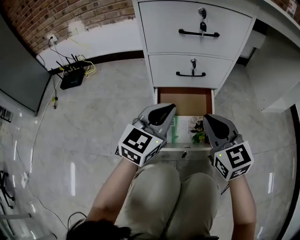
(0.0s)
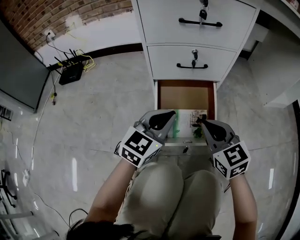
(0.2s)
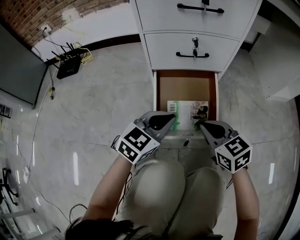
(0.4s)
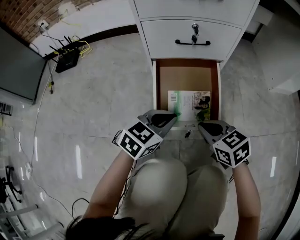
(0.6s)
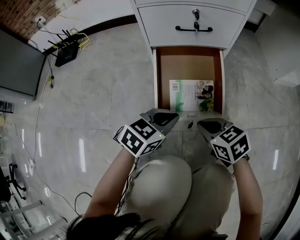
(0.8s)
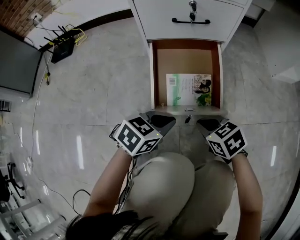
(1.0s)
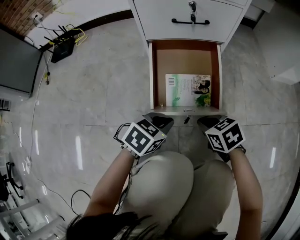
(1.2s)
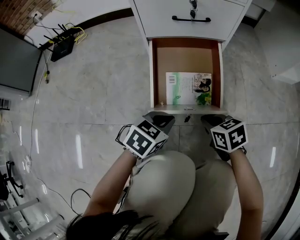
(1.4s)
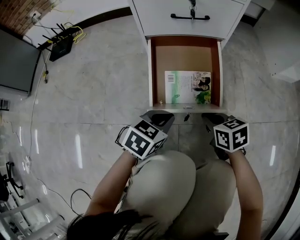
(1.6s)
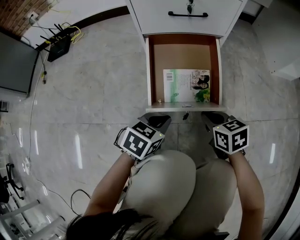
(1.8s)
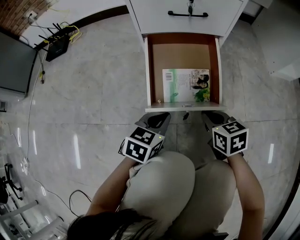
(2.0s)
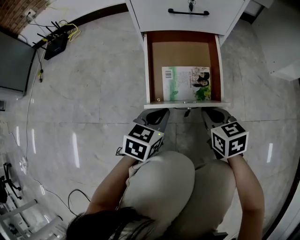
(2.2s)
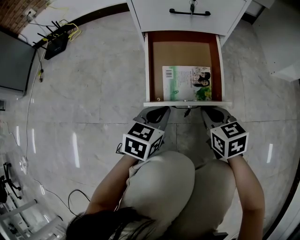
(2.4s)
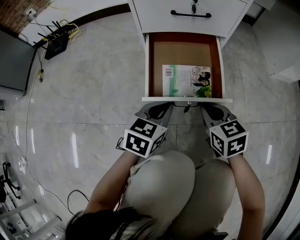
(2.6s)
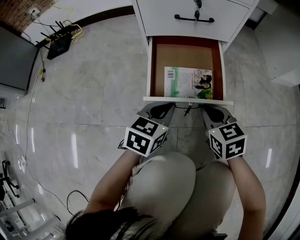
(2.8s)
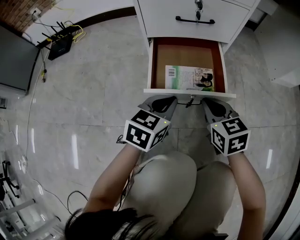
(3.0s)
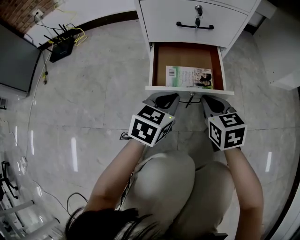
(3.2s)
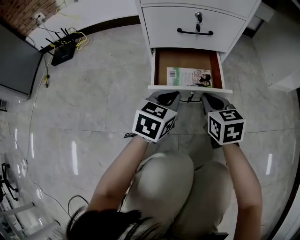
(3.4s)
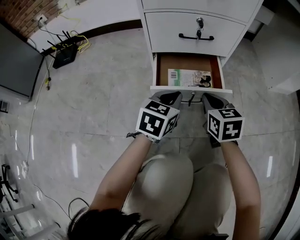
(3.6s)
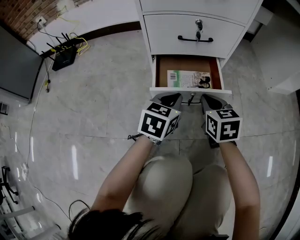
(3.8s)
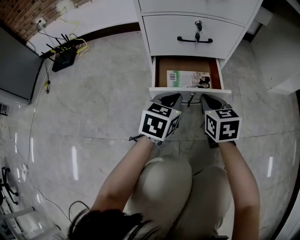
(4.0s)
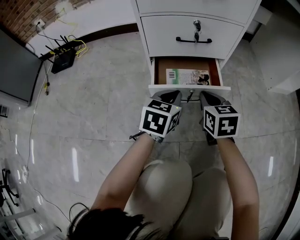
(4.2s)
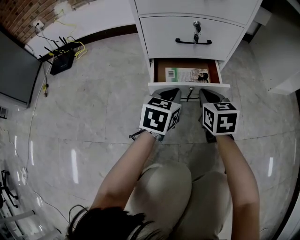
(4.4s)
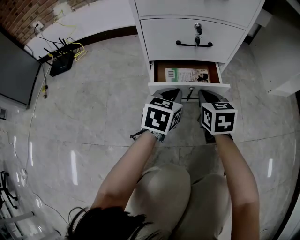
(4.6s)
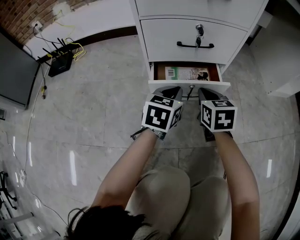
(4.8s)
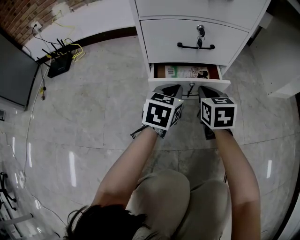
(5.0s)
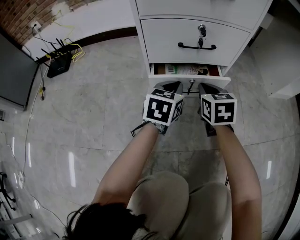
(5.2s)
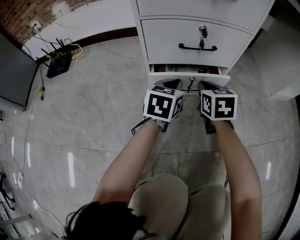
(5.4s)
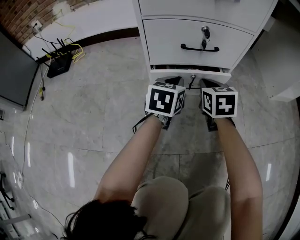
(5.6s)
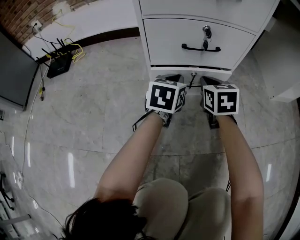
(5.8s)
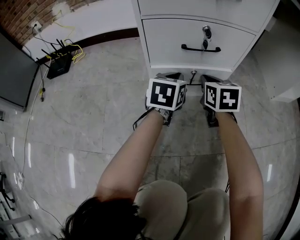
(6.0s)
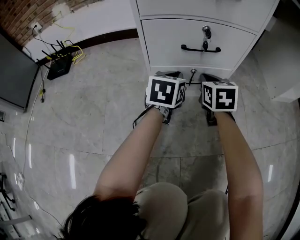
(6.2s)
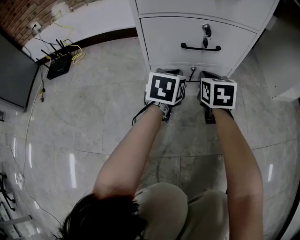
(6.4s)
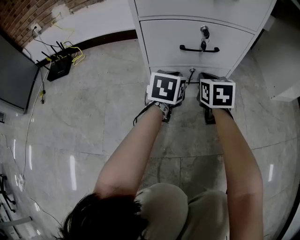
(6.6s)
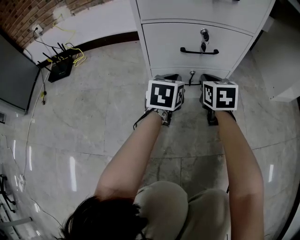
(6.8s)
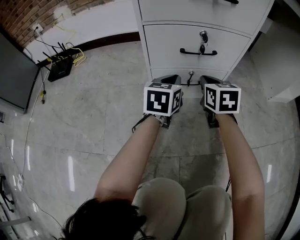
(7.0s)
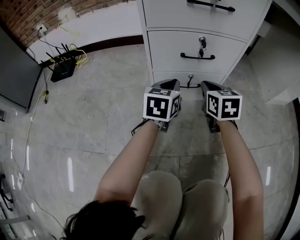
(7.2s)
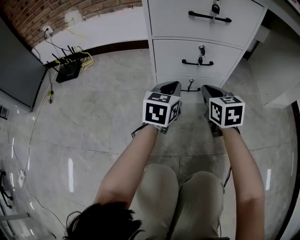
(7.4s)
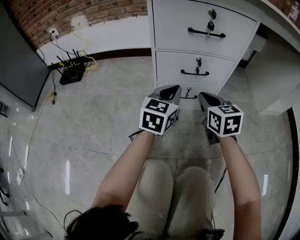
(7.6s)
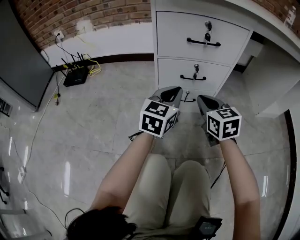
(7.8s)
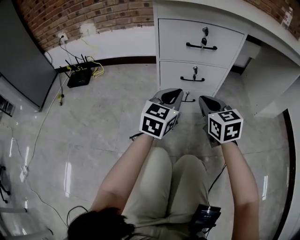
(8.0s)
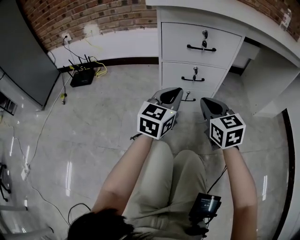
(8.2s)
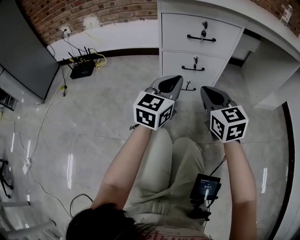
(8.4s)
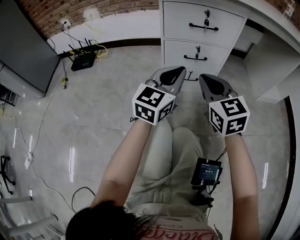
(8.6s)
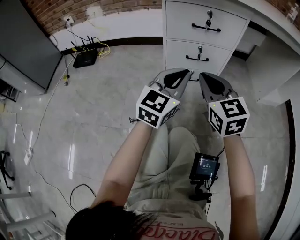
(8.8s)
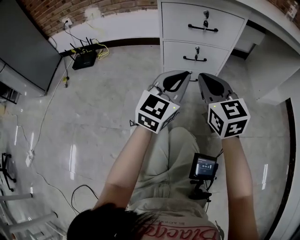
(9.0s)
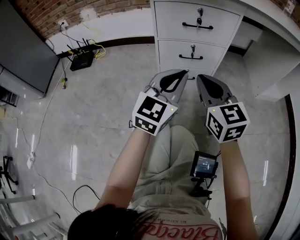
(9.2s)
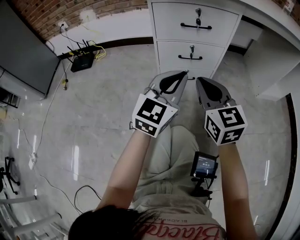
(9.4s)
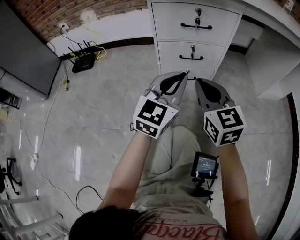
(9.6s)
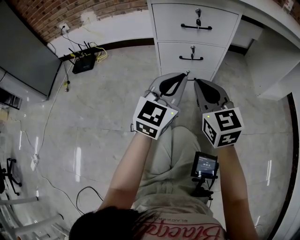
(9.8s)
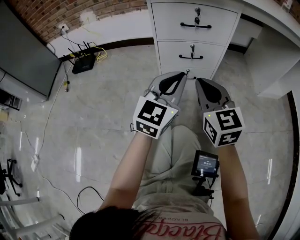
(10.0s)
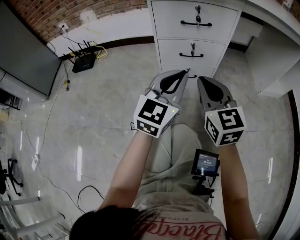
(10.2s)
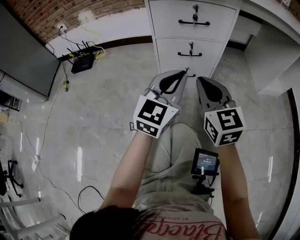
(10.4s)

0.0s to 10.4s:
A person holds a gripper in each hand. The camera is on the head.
0.0s to 1.4s: The left gripper is displaced downward and backward by about 25 cm, and tips its fingers downward by some 40 degrees. Meanwhile the right gripper travels downward by some 25 cm, and tips its fingers downward by about 40 degrees.
1.4s to 3.0s: The right gripper shifts some 10 cm upward and forward, and turns by about 20 degrees. The left gripper heads forward, covering roughly 5 cm.
3.0s to 4.4s: The two grippers go some 10 cm forward.
4.4s to 6.0s: The grippers both shift forward by about 10 cm.
6.0s to 7.4s: The left gripper moves upward, some 5 cm; the right gripper travels upward and backward by approximately 10 cm.
7.4s to 9.0s: The two grippers go roughly 25 cm upward and backward. The right gripper rotates some 20 degrees. The left gripper changes its angle by approximately 30 degrees.
9.0s to 10.4s: The grippers move only a little.

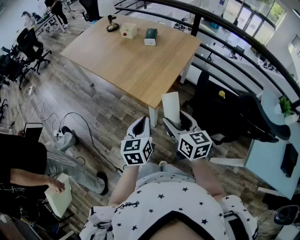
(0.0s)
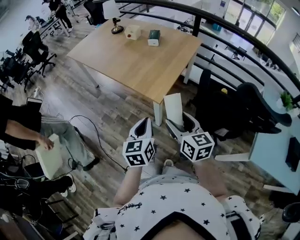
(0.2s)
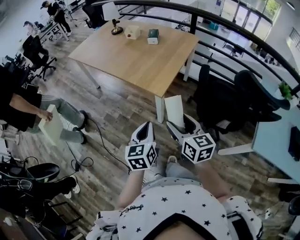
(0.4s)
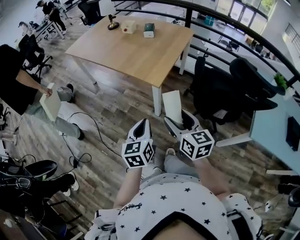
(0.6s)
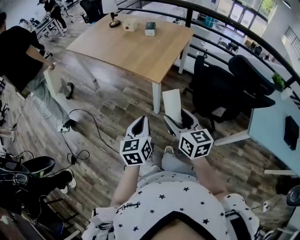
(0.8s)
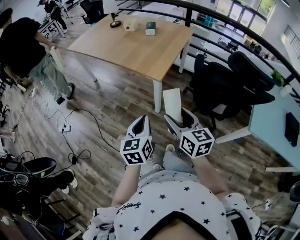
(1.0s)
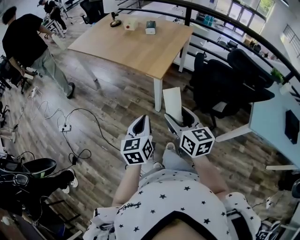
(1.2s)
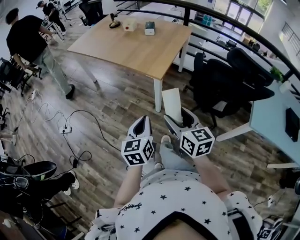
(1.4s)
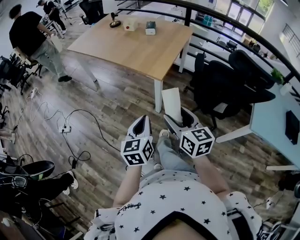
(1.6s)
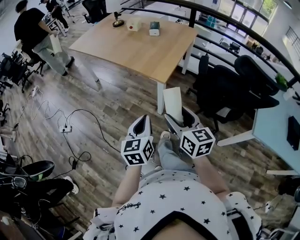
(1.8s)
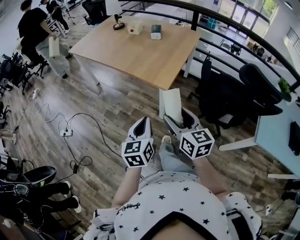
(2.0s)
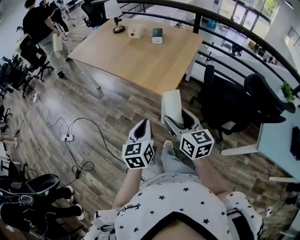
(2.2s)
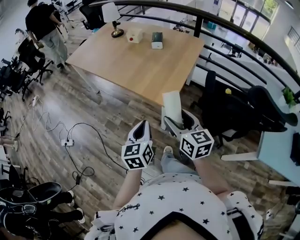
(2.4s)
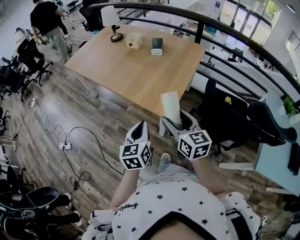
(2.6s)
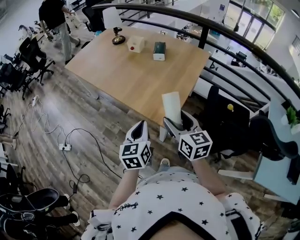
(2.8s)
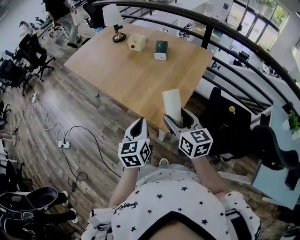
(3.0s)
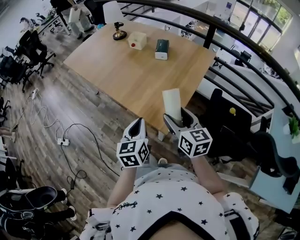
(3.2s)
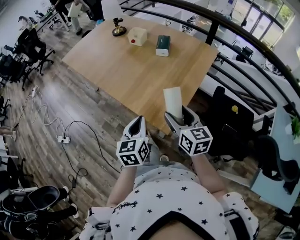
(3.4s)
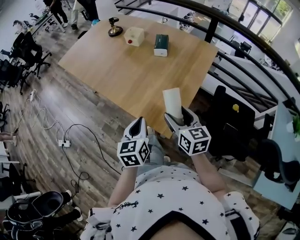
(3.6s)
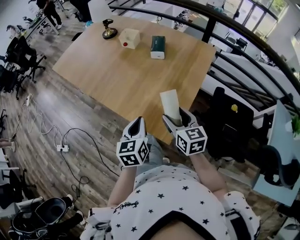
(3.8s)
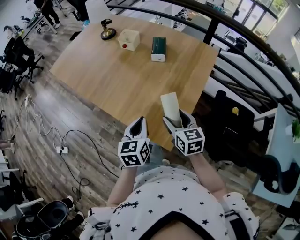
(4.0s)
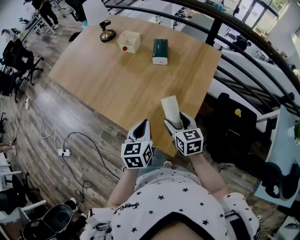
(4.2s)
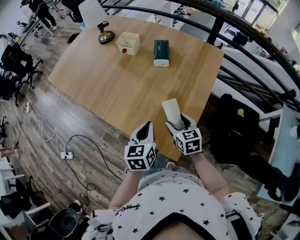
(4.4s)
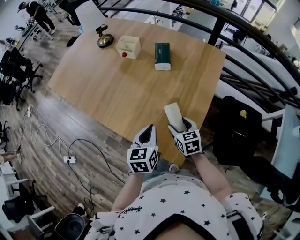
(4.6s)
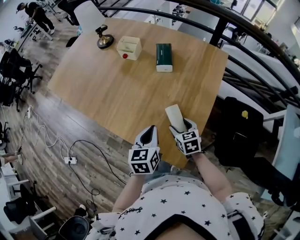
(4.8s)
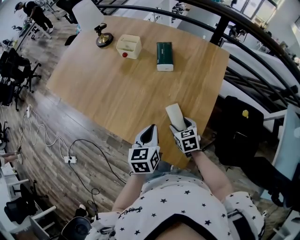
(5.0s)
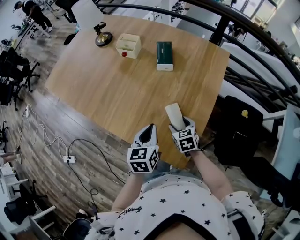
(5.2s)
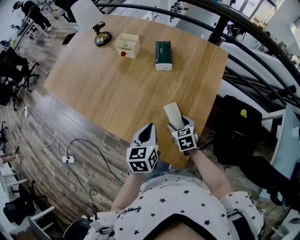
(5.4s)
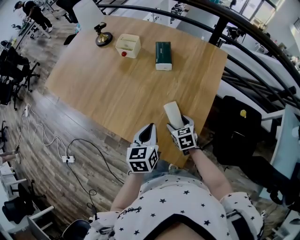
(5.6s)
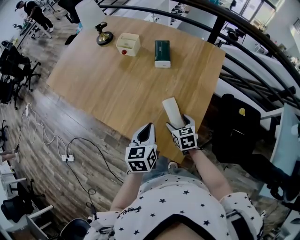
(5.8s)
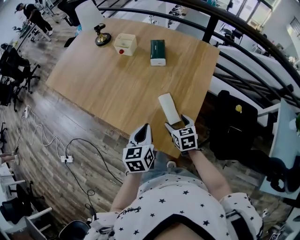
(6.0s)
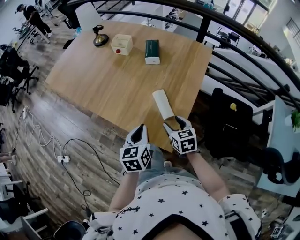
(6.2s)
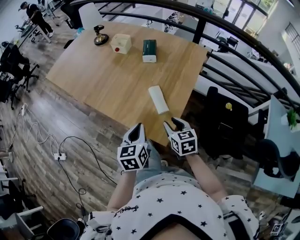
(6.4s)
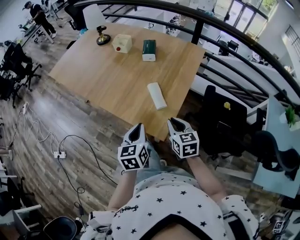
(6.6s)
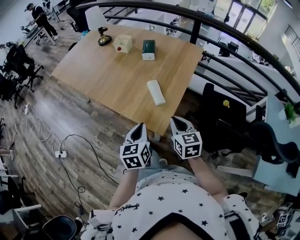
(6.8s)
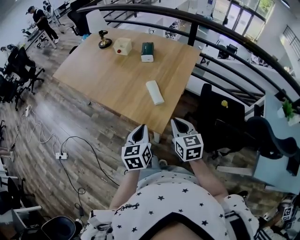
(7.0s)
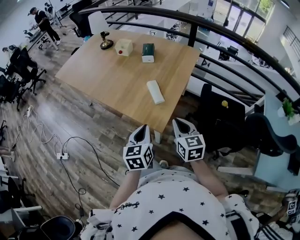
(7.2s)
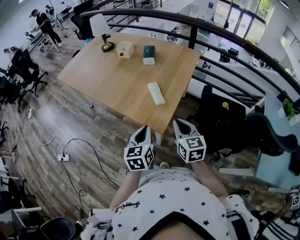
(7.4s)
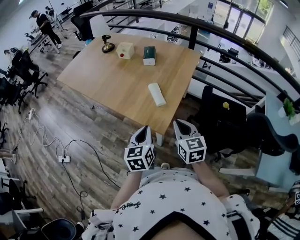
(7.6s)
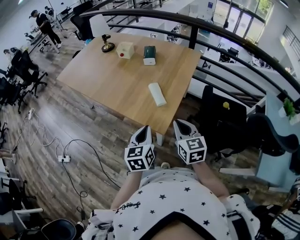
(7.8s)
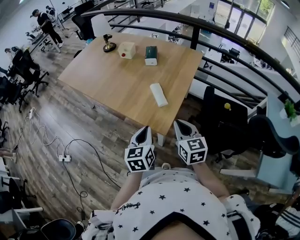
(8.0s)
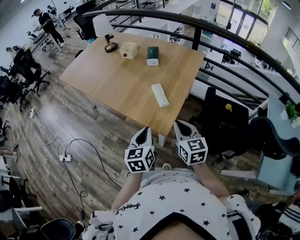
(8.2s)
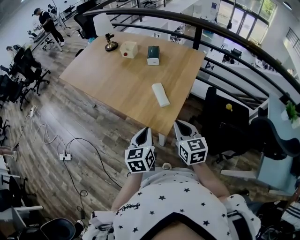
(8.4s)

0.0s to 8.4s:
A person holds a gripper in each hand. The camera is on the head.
0.0s to 1.4s: The grippers both shift backward by approximately 20 cm.
1.4s to 2.8s: Both grippers travel together forward, roughly 30 cm.
2.8s to 4.2s: The right gripper moves forward and downward, some 25 cm, while the left gripper travels forward by approximately 20 cm.
4.2s to 5.6s: The left gripper moves forward, some 5 cm; the right gripper shifts roughly 15 cm downward and forward.
5.6s to 7.0s: The left gripper goes some 25 cm backward, while the right gripper is displaced backward and upward by about 30 cm, turns by about 30 degrees, and closes up.
7.0s to 8.4s: The grippers make only small movements.

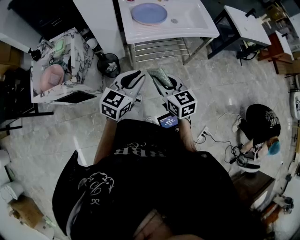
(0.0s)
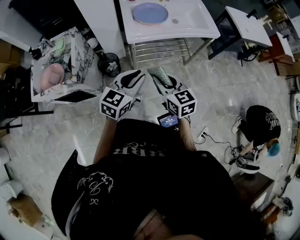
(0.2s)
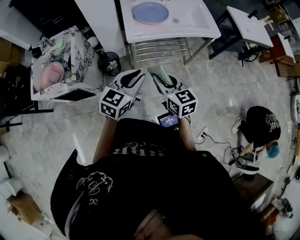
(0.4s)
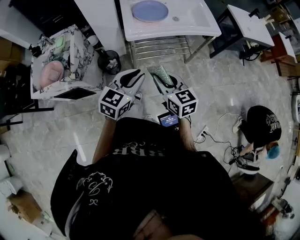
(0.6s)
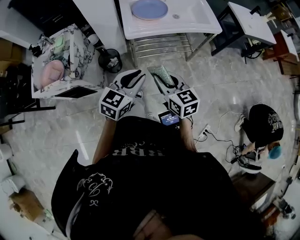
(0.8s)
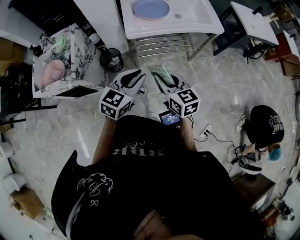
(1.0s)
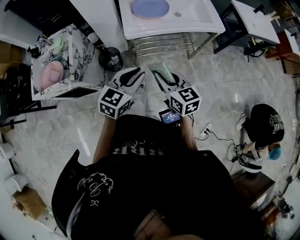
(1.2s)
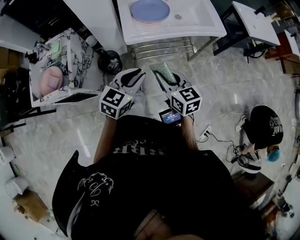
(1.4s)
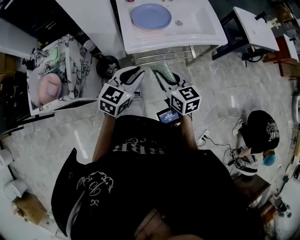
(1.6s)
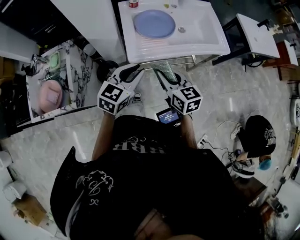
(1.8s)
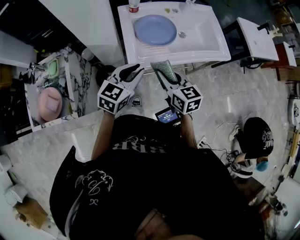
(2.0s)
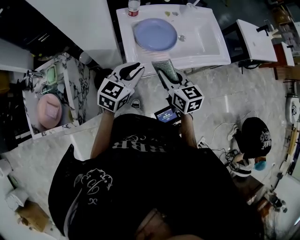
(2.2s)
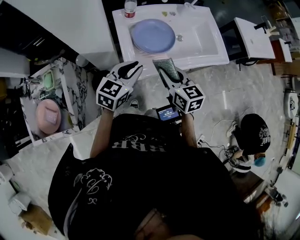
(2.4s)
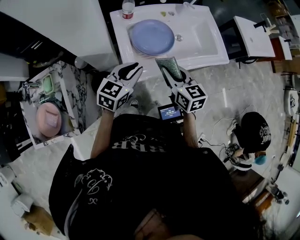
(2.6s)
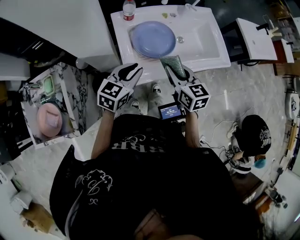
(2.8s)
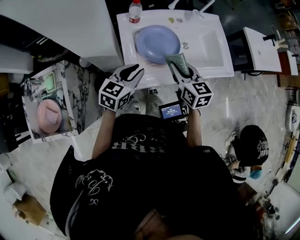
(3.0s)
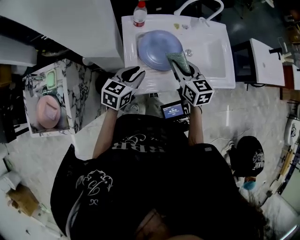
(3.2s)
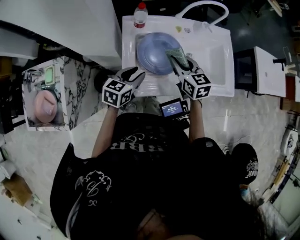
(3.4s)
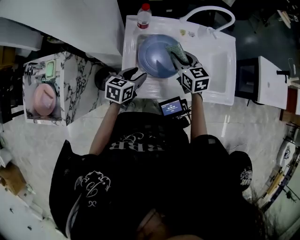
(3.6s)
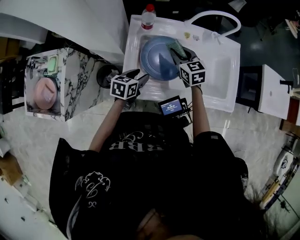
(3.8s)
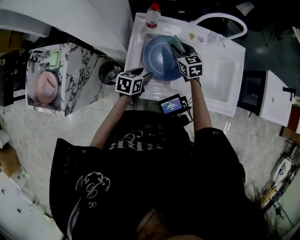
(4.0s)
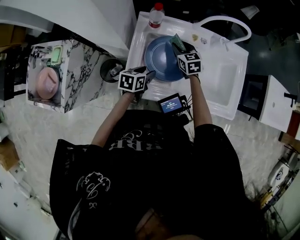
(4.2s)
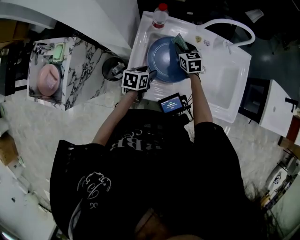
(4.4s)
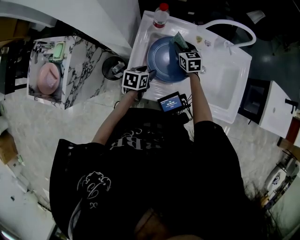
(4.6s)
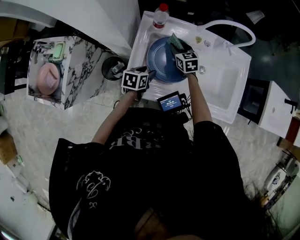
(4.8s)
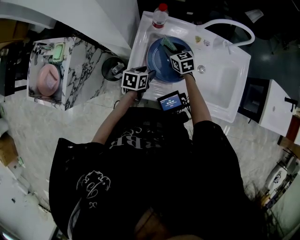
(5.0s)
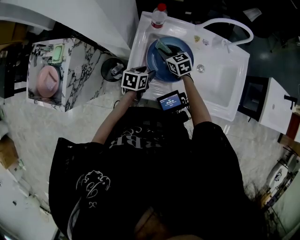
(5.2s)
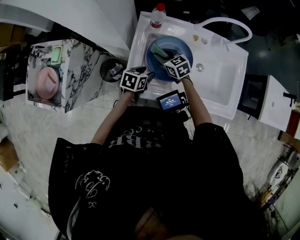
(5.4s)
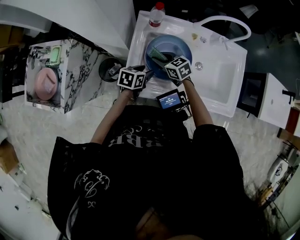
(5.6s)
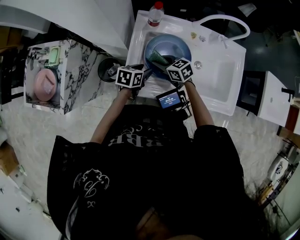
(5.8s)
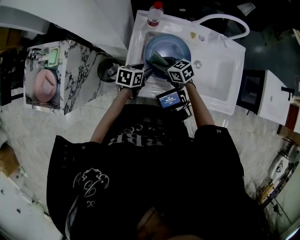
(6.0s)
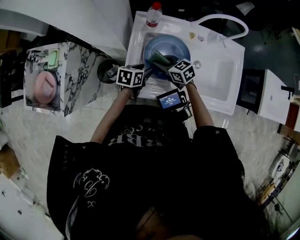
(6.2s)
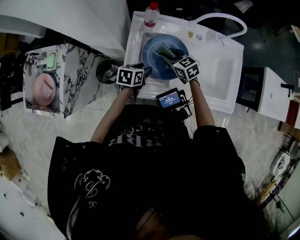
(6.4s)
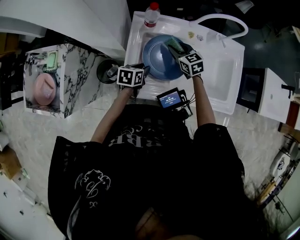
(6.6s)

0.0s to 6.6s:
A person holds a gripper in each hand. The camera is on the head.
0.0s to 1.6s: The grippers both shift forward by about 15 cm.
1.6s to 3.2s: Both grippers travel together forward, roughly 30 cm.
3.2s to 5.0s: The left gripper travels downward by roughly 15 cm, turns by some 40 degrees, and opens up, while the right gripper heads downward and forward, covering some 25 cm, and swivels roughly 30 degrees.
5.0s to 6.6s: The right gripper reaches some 10 cm backward, then returns.
